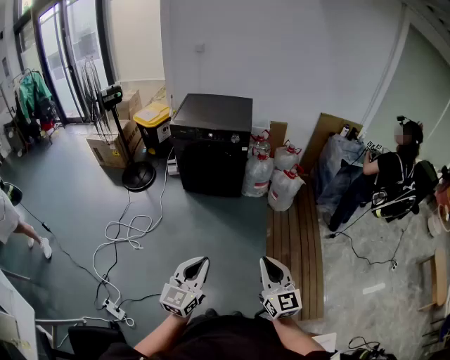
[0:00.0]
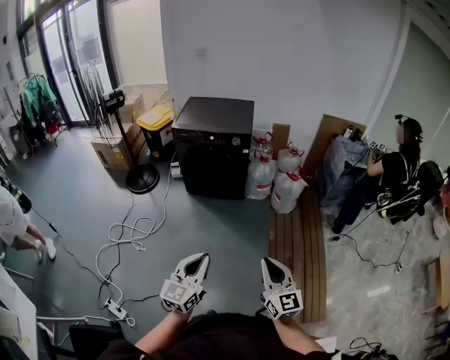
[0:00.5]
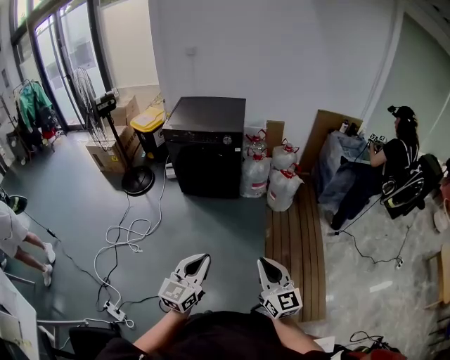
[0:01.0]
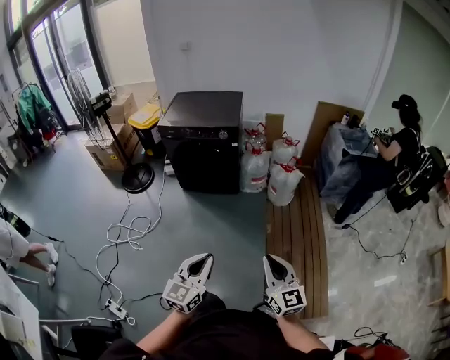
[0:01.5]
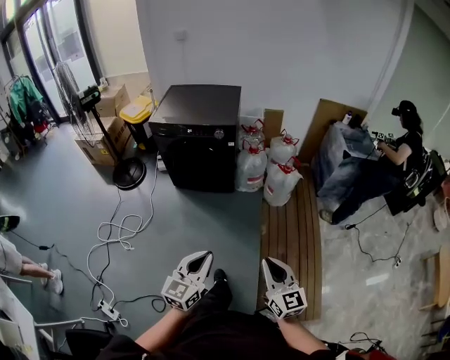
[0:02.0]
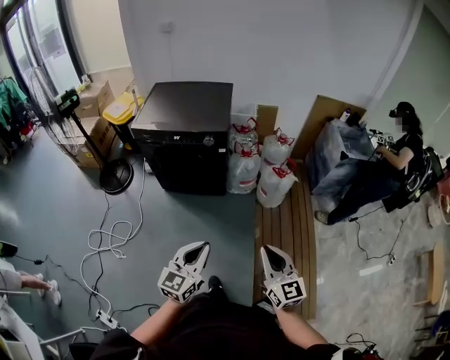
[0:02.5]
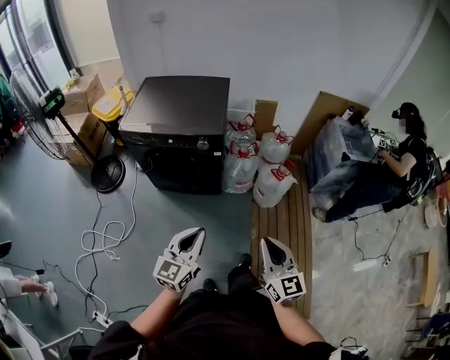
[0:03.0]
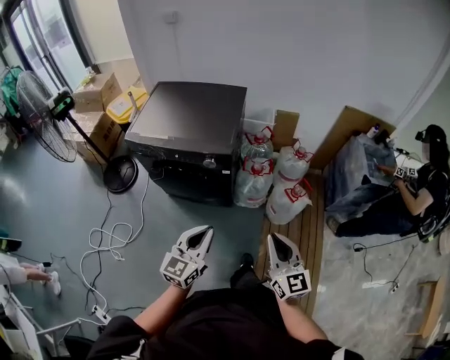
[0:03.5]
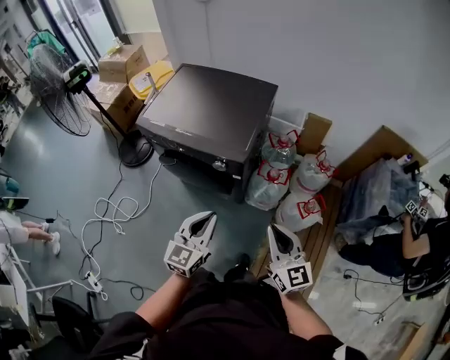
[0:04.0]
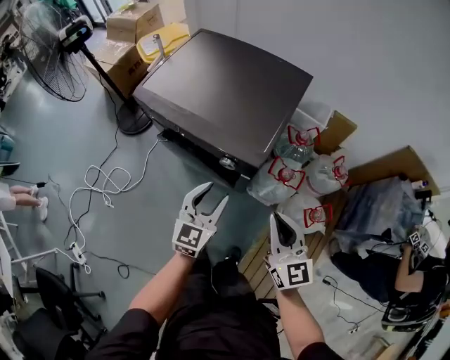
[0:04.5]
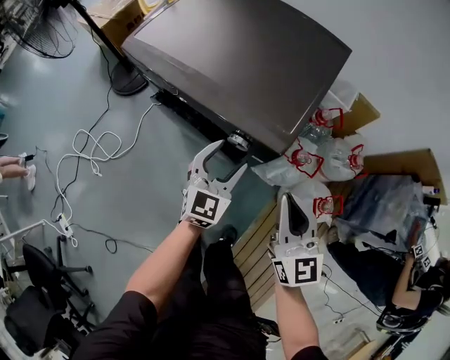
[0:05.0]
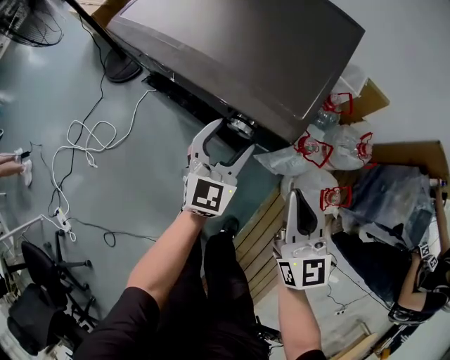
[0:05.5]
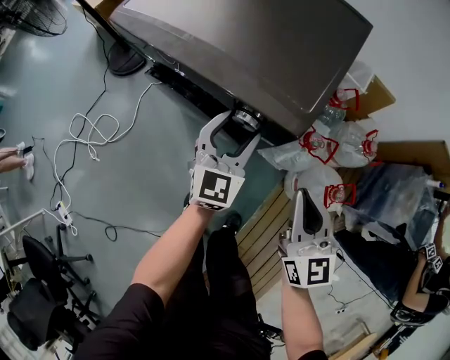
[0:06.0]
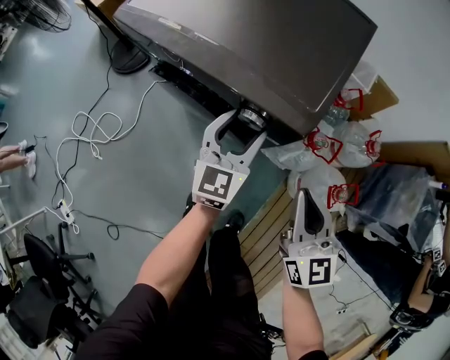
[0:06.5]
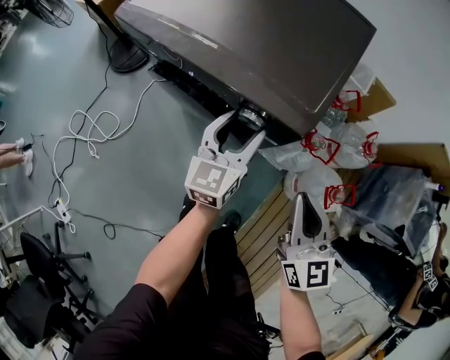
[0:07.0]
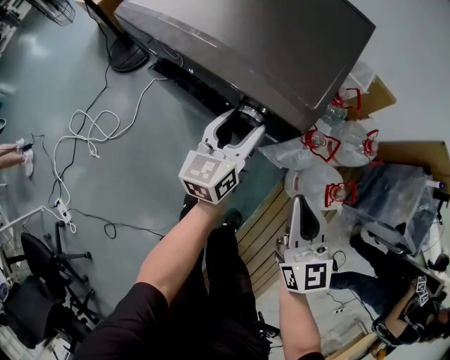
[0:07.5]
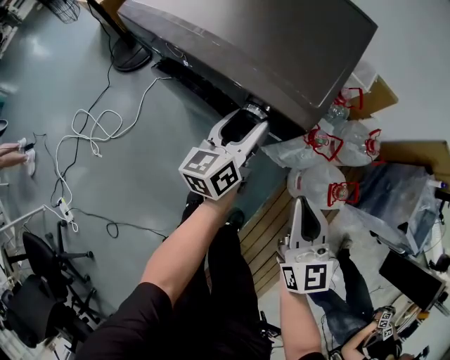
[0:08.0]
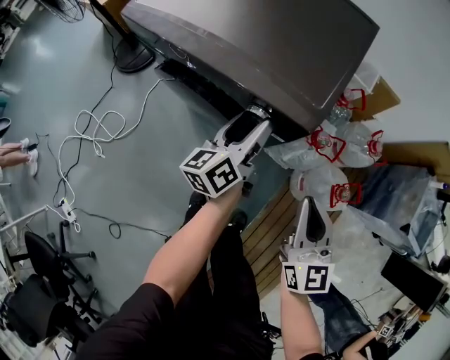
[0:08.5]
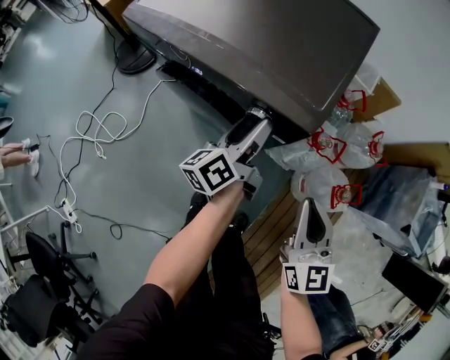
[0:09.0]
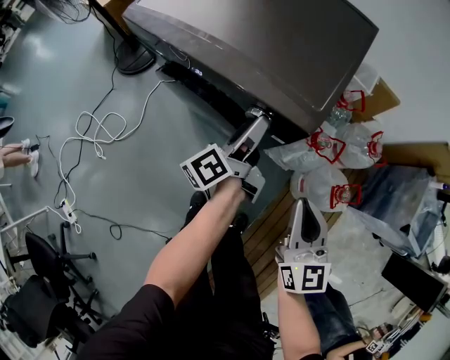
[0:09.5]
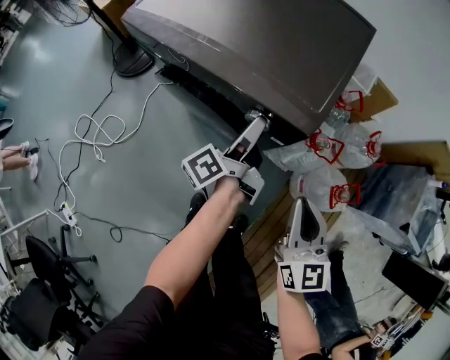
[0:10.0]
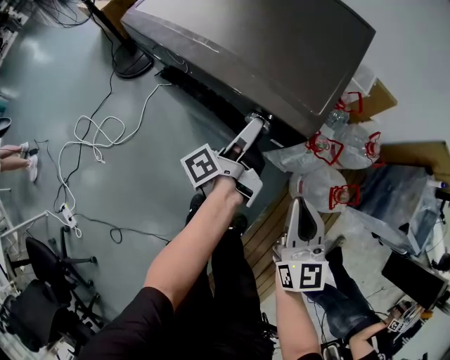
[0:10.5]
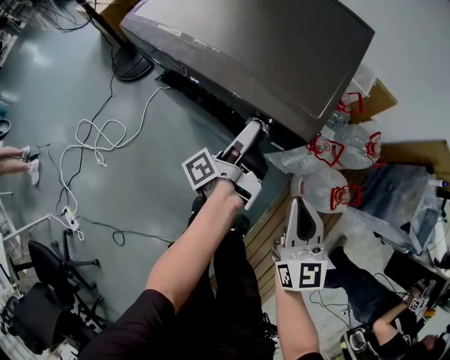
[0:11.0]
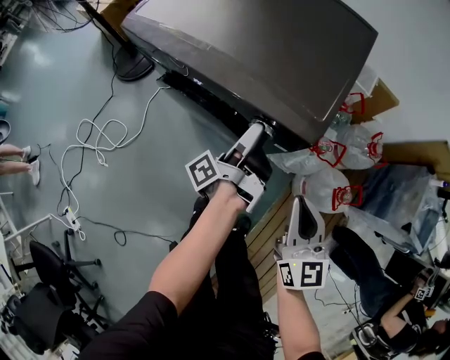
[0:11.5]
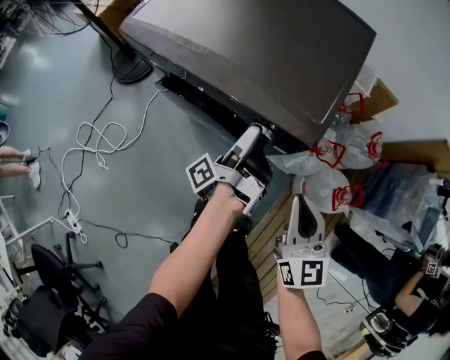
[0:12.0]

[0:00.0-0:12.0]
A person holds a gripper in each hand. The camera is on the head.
0:00.0 to 0:02.0: The right gripper travels to the right and forward by about 15 cm, while the left gripper goes about 20 cm forward and to the right.
0:02.0 to 0:04.0: Both grippers are carried forward, about 60 cm.
0:04.0 to 0:06.0: The right gripper is displaced downward and forward by about 25 cm. The left gripper moves forward and downward, about 30 cm, and opens up.
0:06.0 to 0:08.0: The left gripper twists some 40 degrees counterclockwise, seen from behind.
0:08.0 to 0:10.0: The left gripper rolls counterclockwise, seen from behind, by about 50 degrees.
0:10.0 to 0:12.0: The left gripper changes its angle by some 30 degrees.

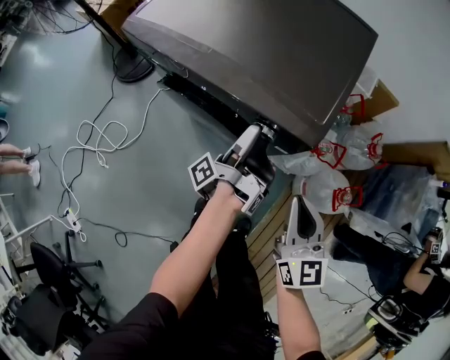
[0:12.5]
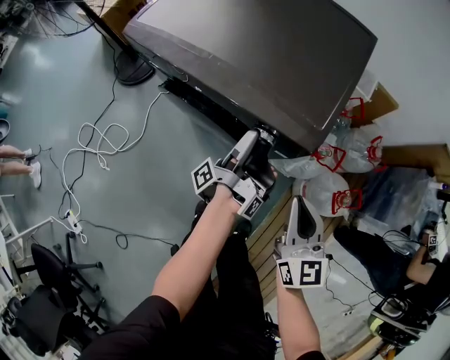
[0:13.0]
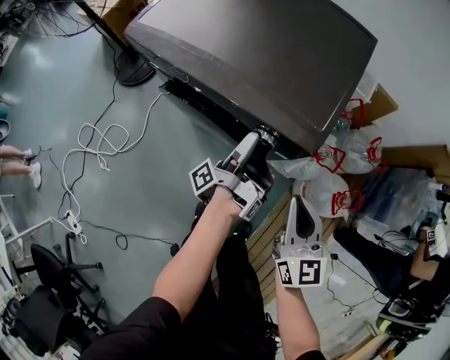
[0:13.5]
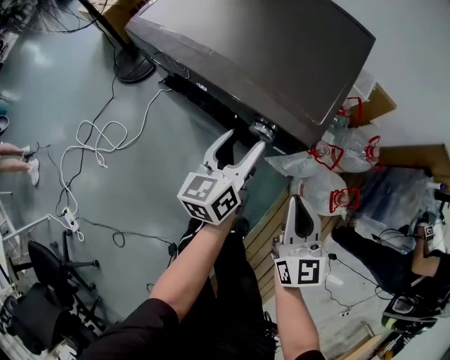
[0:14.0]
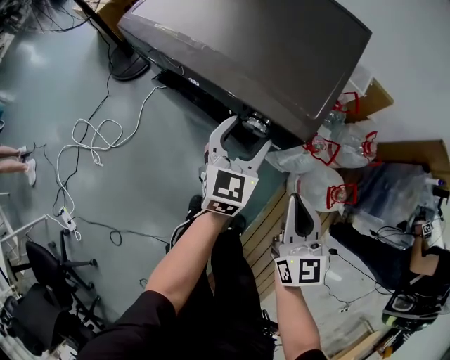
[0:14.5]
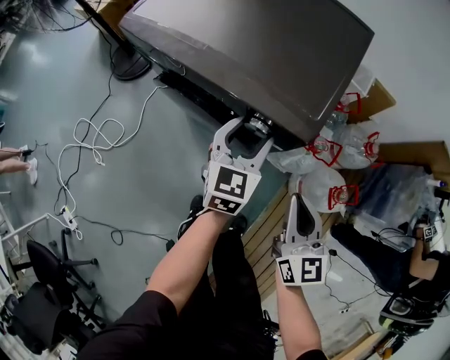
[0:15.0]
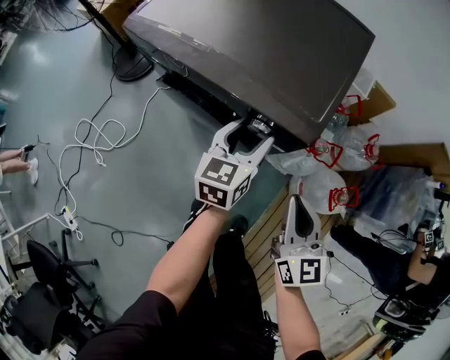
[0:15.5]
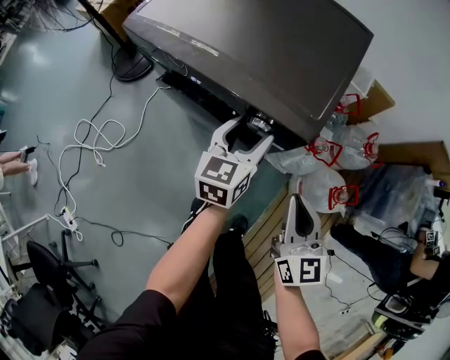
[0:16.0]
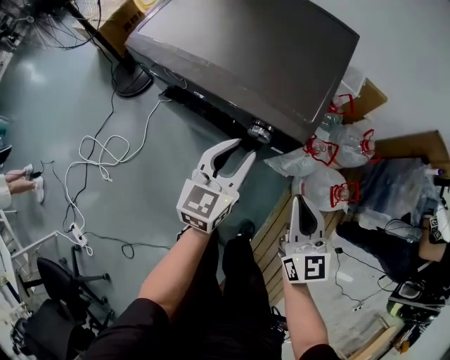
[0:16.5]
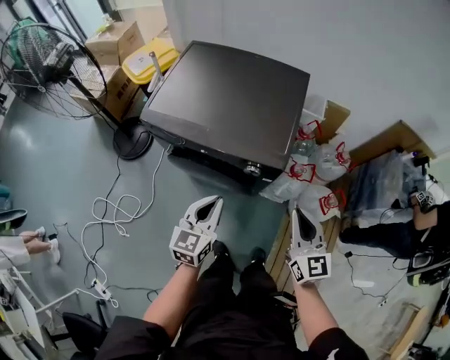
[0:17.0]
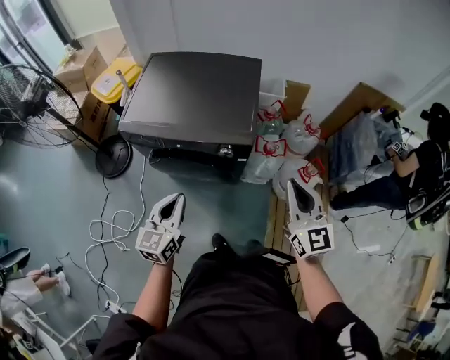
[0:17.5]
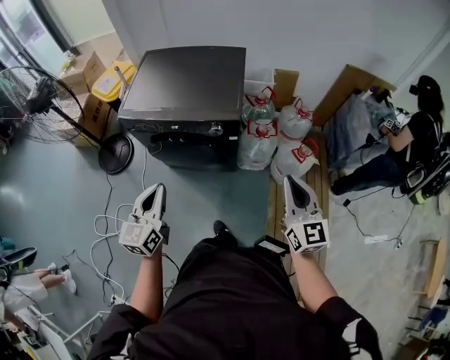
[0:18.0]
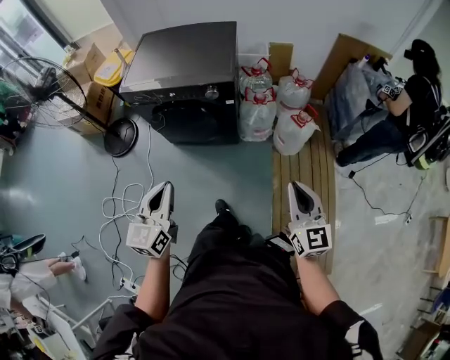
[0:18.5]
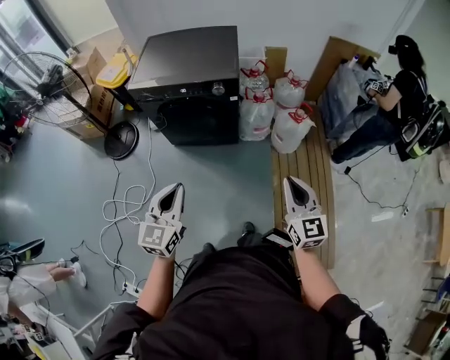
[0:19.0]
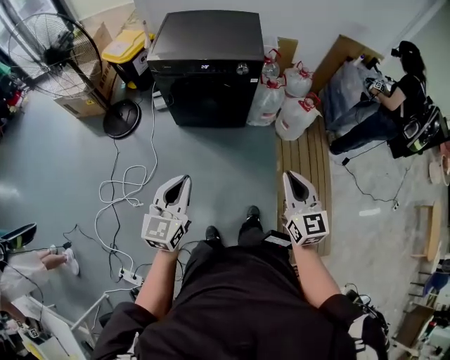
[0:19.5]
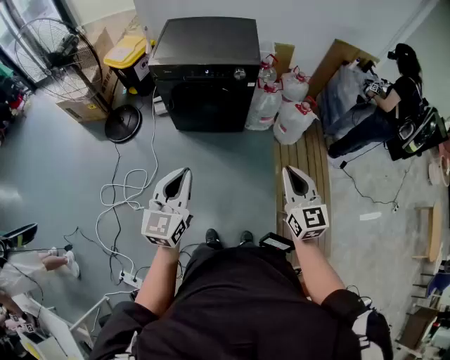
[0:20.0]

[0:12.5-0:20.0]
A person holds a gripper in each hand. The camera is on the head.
0:12.5 to 0:14.5: The left gripper rolls clockwise, seen from behind, by approximately 120 degrees.
0:14.5 to 0:16.5: The left gripper heads upward, covering about 5 cm, and closes.
0:16.5 to 0:18.0: The left gripper travels backward, upward and to the left by roughly 35 cm, and closes its fingers; the right gripper travels upward and backward by roughly 30 cm, and swivels approximately 20 degrees.
0:18.0 to 0:20.0: The left gripper is displaced backward by approximately 30 cm. Meanwhile the right gripper travels backward and to the left by roughly 35 cm.

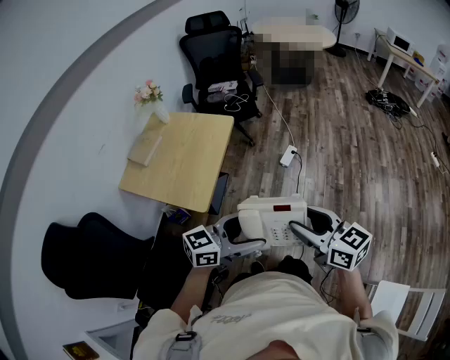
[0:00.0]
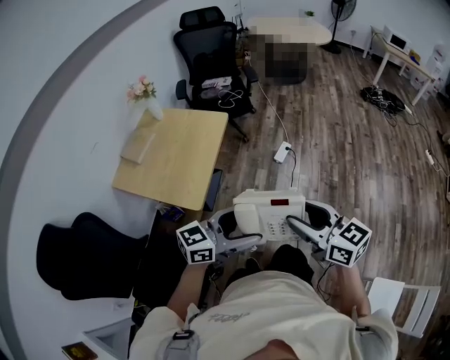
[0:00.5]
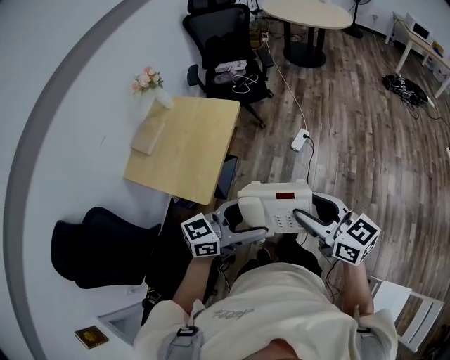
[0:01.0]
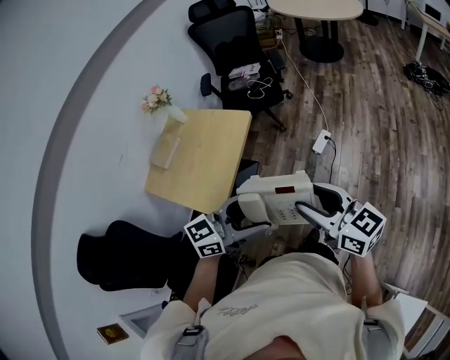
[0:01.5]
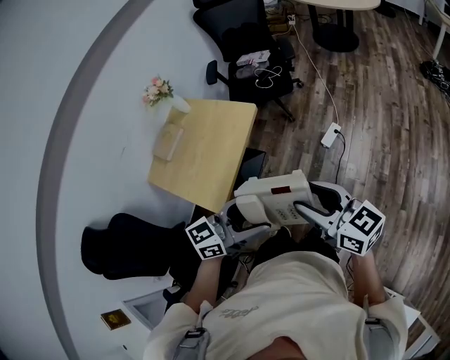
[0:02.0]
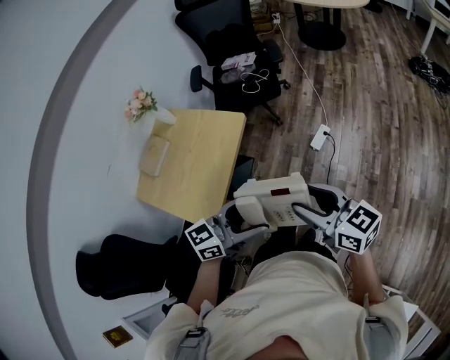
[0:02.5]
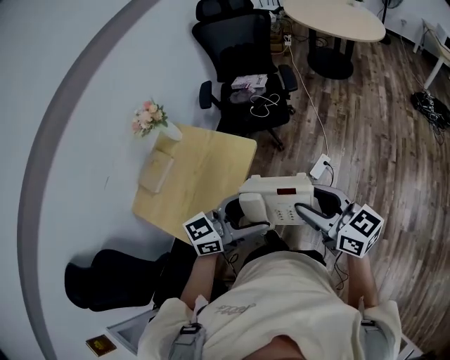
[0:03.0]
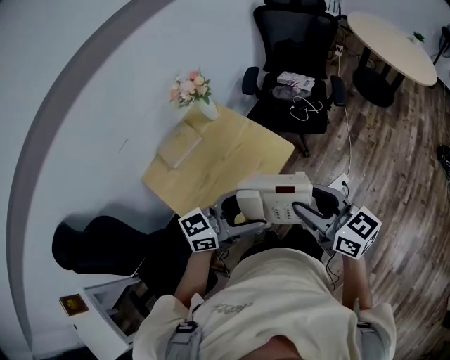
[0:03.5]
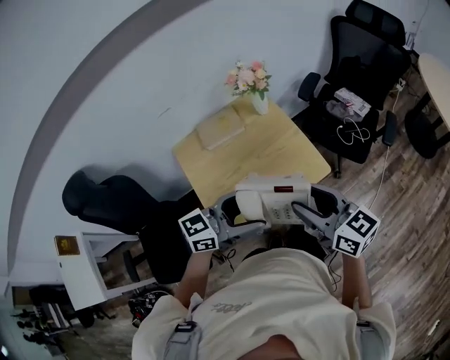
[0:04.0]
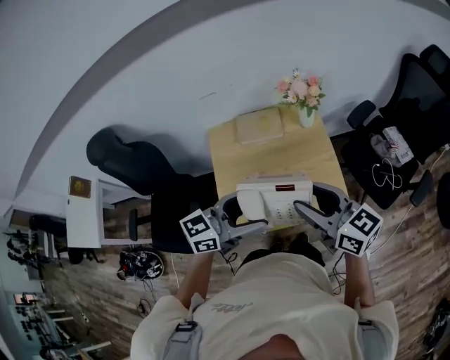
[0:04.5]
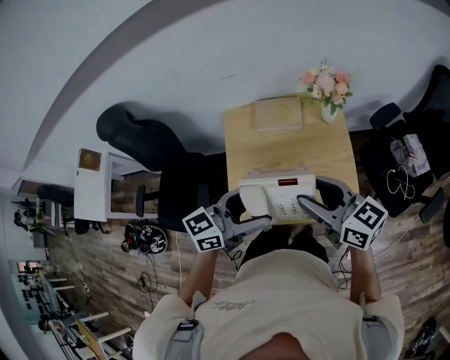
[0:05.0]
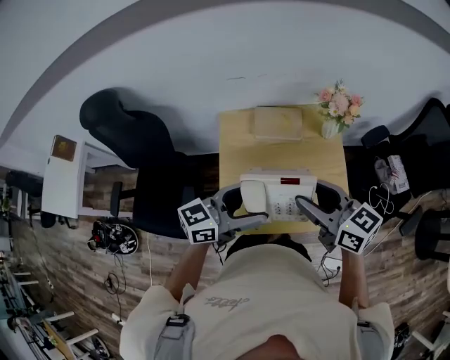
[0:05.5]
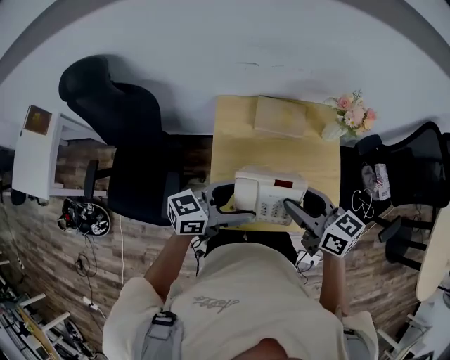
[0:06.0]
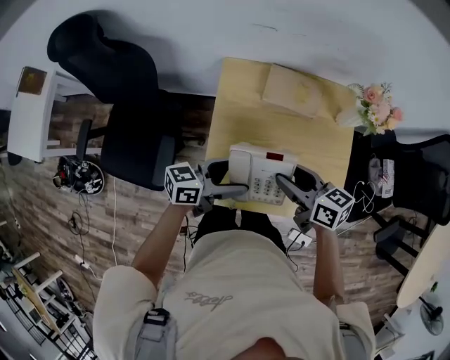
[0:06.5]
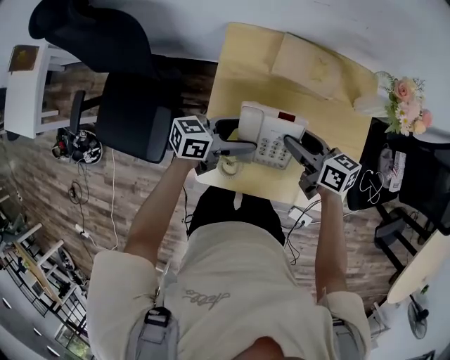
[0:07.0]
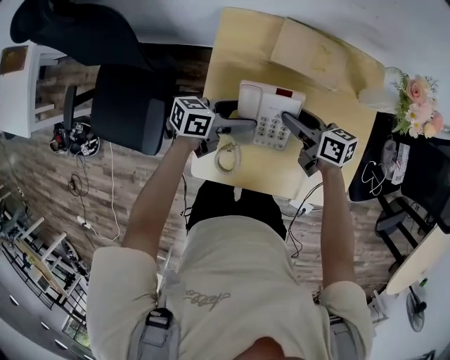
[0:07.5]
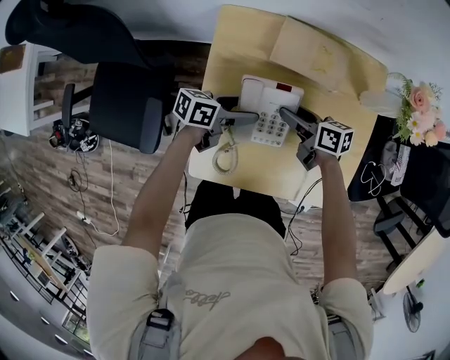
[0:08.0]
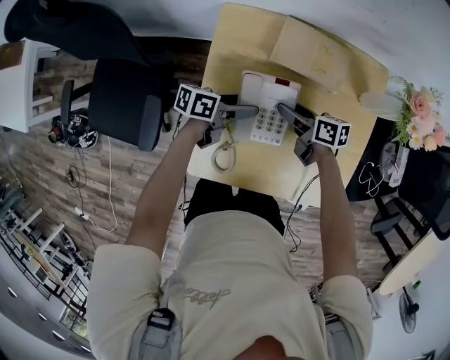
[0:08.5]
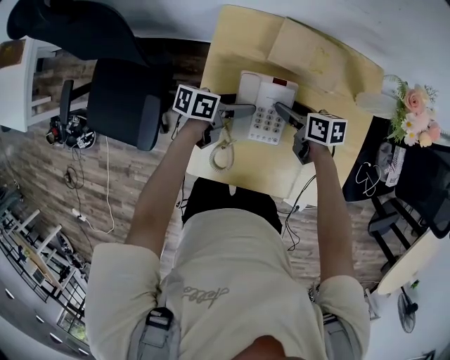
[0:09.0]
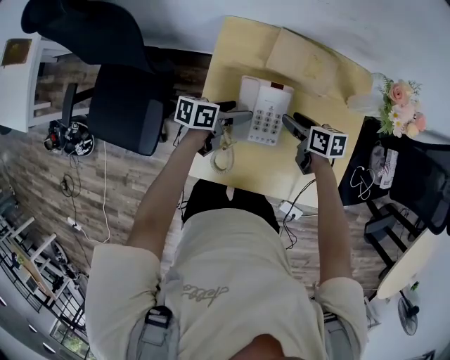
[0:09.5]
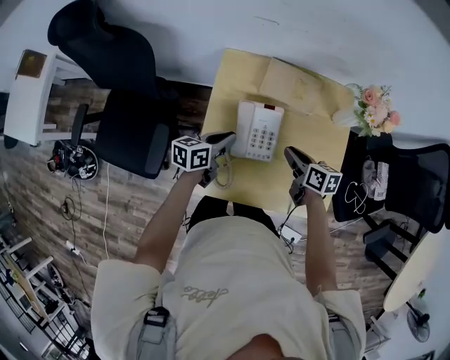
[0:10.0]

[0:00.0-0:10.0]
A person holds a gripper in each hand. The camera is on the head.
0:00.0 to 0:02.0: The two grippers go roughly 20 cm forward.
0:02.0 to 0:04.0: The left gripper moves about 35 cm, and rotates about 30 degrees; the right gripper moves about 40 cm, and changes its angle by about 30 degrees.
0:04.0 to 0:06.0: The left gripper ends up about 20 cm from where it was, and turns by roughly 30 degrees. The right gripper ends up roughly 25 cm from where it was, and turns by about 30 degrees.
0:06.0 to 0:08.0: The grippers both shift downward by approximately 30 cm. The right gripper turns by roughly 30 degrees; the left gripper changes its angle by approximately 30 degrees.
0:08.0 to 0:10.0: The left gripper moves upward, roughly 10 cm, rotates approximately 20 degrees, and closes its fingers, while the right gripper ends up about 10 cm from where it was, and closes its fingers.
